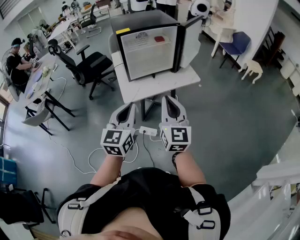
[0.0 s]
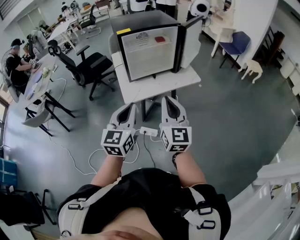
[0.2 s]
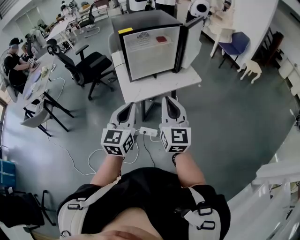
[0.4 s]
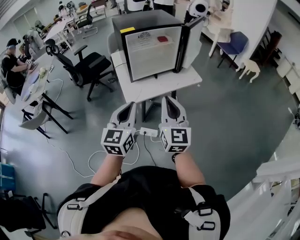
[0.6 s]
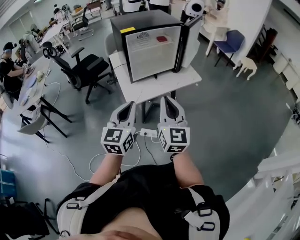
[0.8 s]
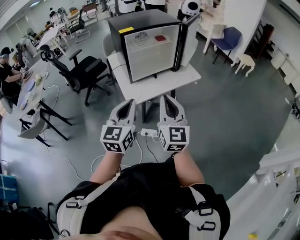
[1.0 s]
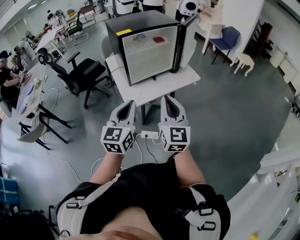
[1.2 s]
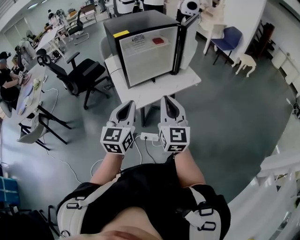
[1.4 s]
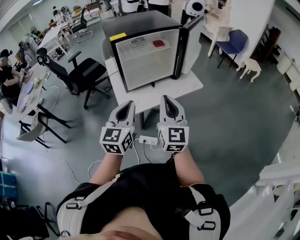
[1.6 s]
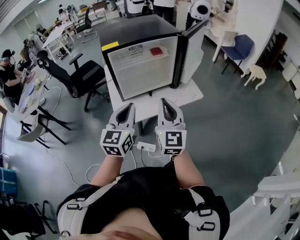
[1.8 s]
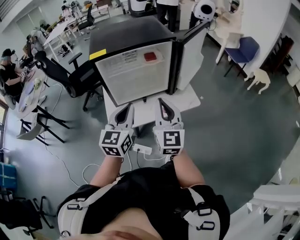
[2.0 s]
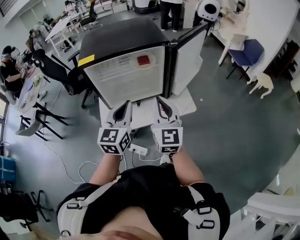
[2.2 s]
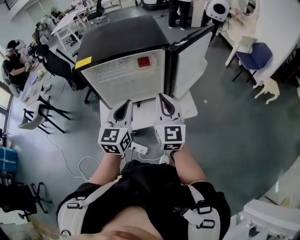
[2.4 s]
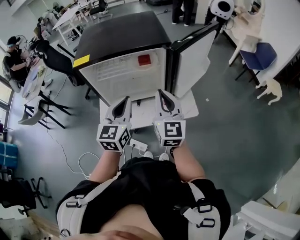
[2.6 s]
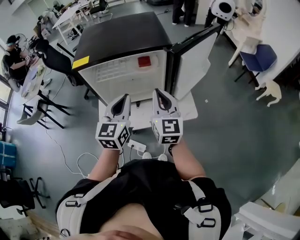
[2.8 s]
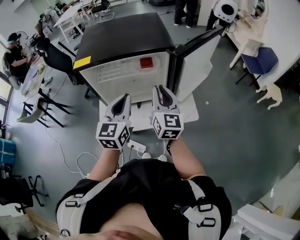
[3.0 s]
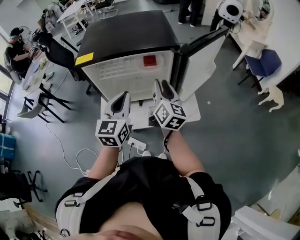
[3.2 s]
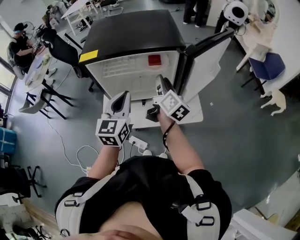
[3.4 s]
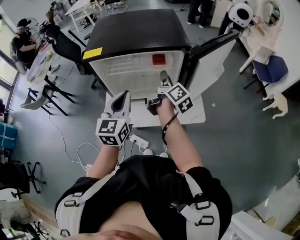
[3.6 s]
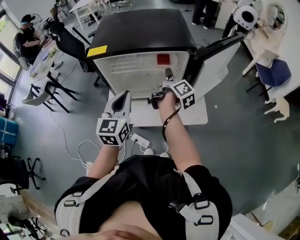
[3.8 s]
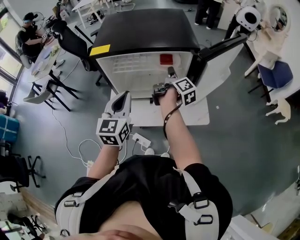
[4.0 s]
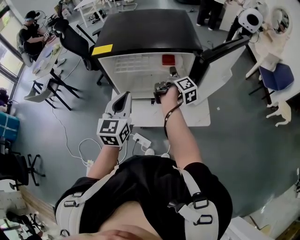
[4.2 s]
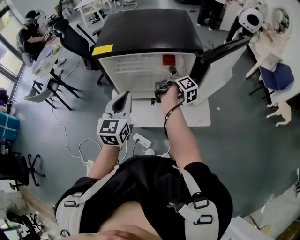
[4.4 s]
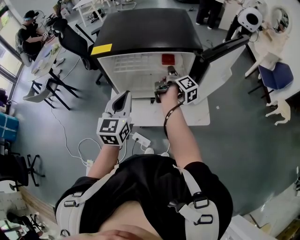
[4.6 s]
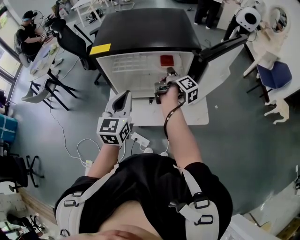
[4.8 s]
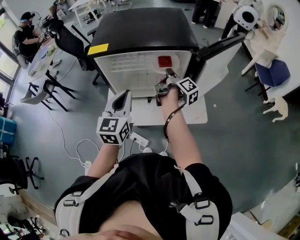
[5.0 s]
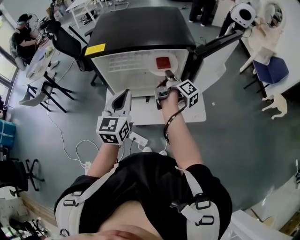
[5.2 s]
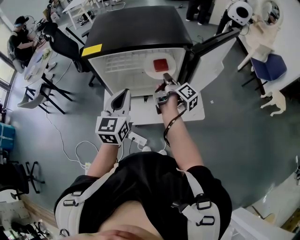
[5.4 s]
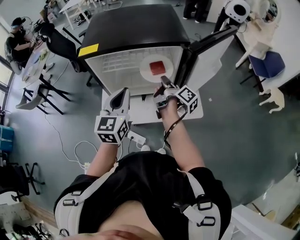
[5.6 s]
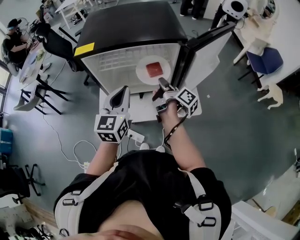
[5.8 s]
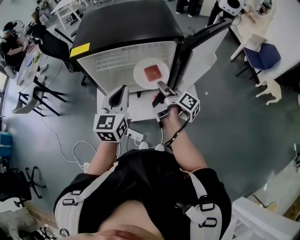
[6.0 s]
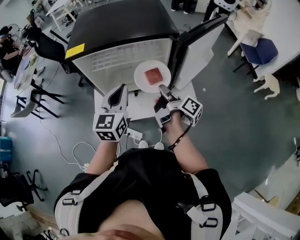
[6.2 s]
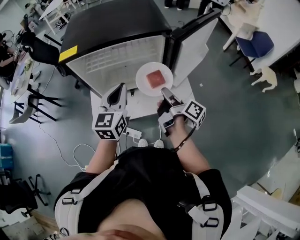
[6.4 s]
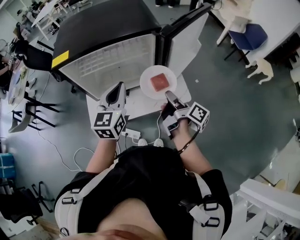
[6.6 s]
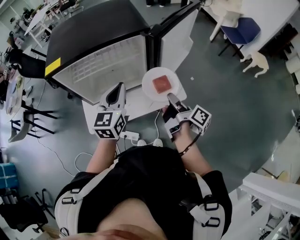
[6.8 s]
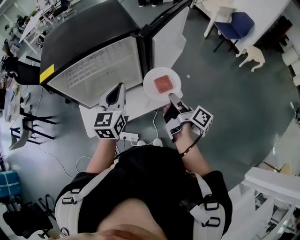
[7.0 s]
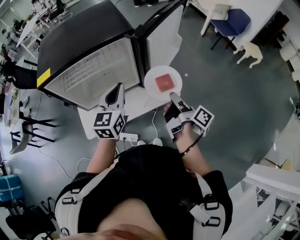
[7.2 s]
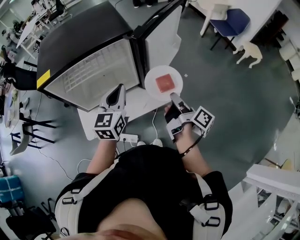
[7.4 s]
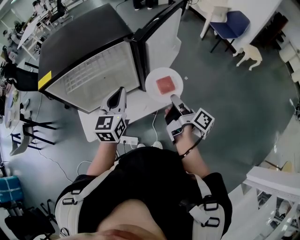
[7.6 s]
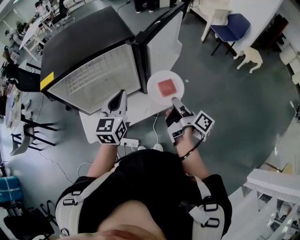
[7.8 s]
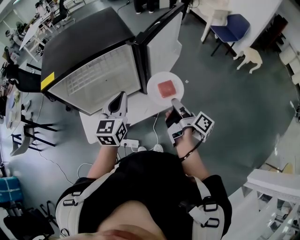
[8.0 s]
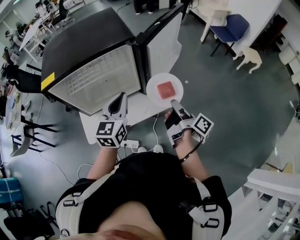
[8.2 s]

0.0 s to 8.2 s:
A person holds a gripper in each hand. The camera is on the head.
0.0 to 1.6 s: Both grippers move forward, roughly 10 cm.
1.6 to 3.2 s: Both grippers move forward and to the right, some 30 cm. The right gripper changes its angle by some 40 degrees, and opens its fingers.
3.2 to 5.0 s: The right gripper shifts approximately 10 cm forward and downward, twists approximately 60 degrees clockwise, seen from behind, and closes up.
5.0 to 6.6 s: The right gripper heads backward and to the right, covering about 20 cm. Meanwhile the left gripper goes roughly 10 cm to the right.
6.6 to 8.2 s: Both grippers move to the right, approximately 5 cm.

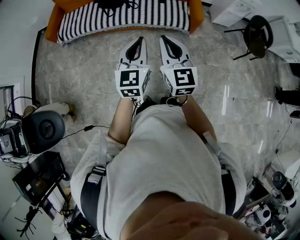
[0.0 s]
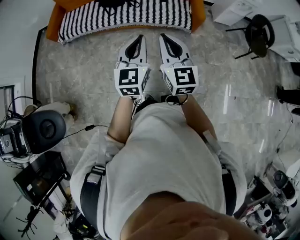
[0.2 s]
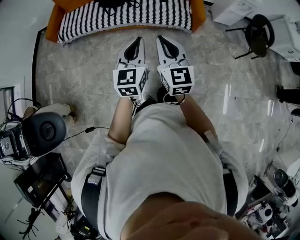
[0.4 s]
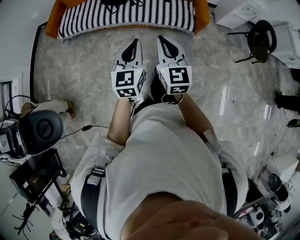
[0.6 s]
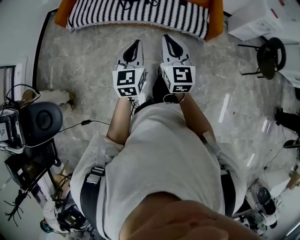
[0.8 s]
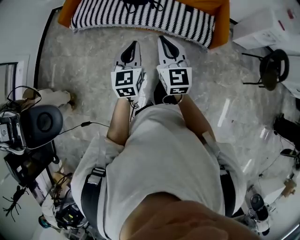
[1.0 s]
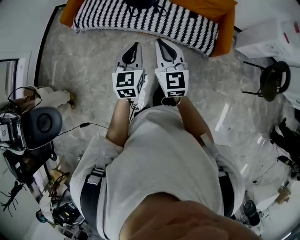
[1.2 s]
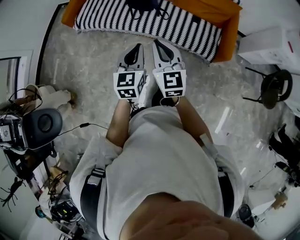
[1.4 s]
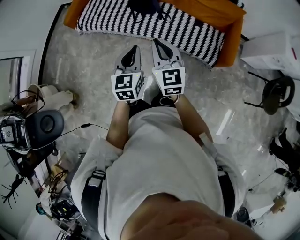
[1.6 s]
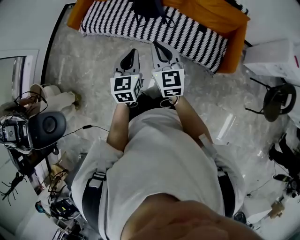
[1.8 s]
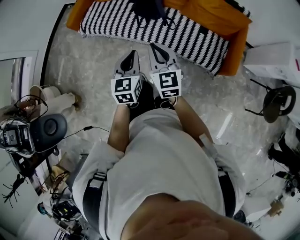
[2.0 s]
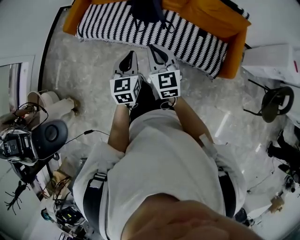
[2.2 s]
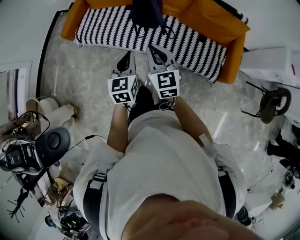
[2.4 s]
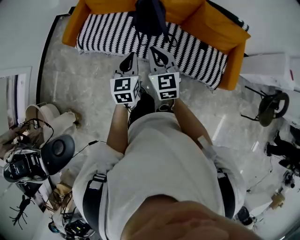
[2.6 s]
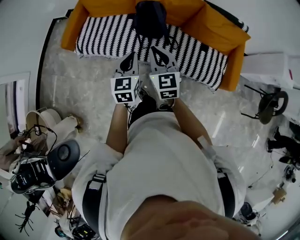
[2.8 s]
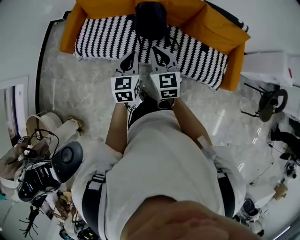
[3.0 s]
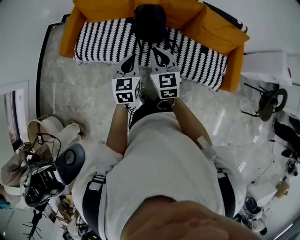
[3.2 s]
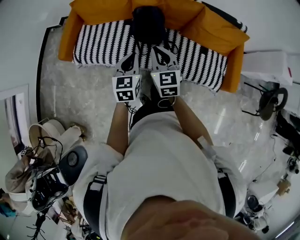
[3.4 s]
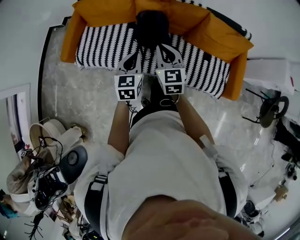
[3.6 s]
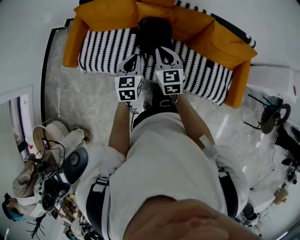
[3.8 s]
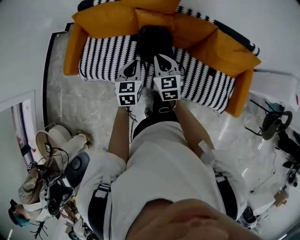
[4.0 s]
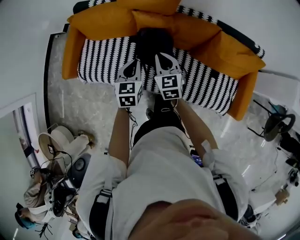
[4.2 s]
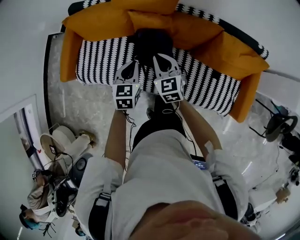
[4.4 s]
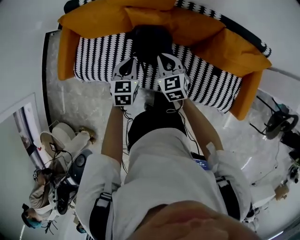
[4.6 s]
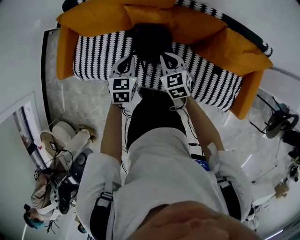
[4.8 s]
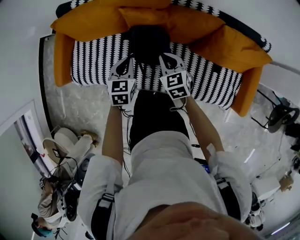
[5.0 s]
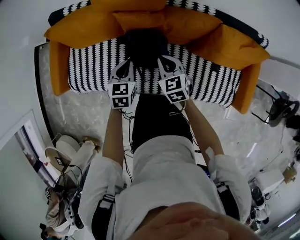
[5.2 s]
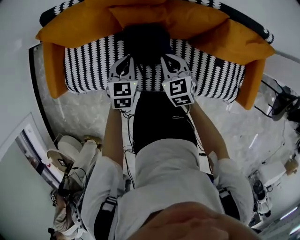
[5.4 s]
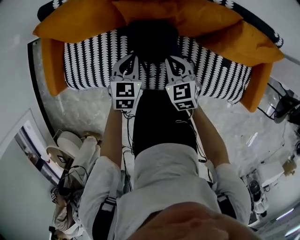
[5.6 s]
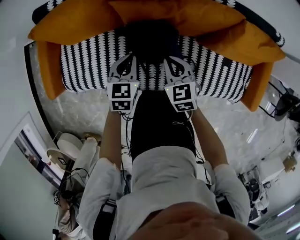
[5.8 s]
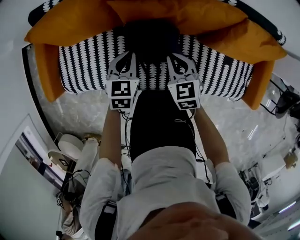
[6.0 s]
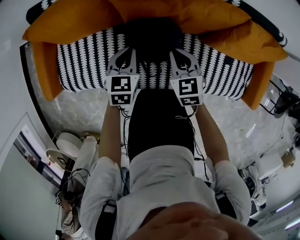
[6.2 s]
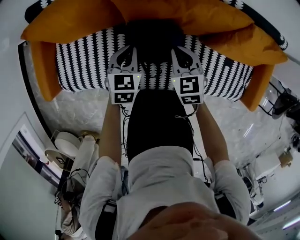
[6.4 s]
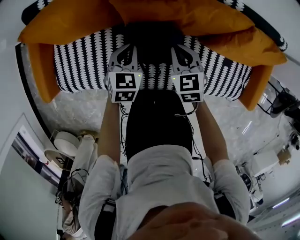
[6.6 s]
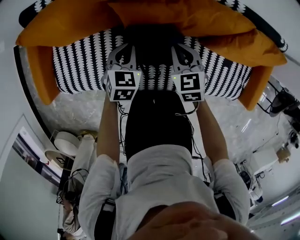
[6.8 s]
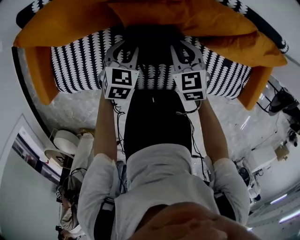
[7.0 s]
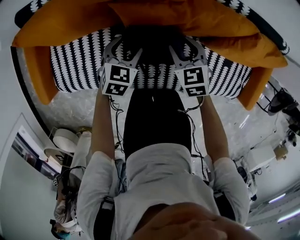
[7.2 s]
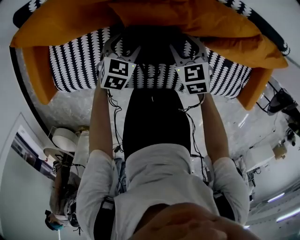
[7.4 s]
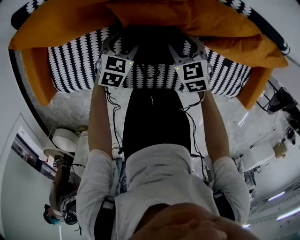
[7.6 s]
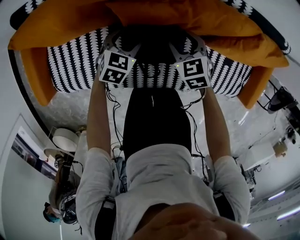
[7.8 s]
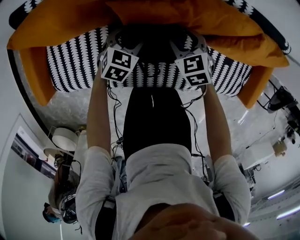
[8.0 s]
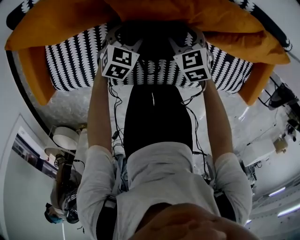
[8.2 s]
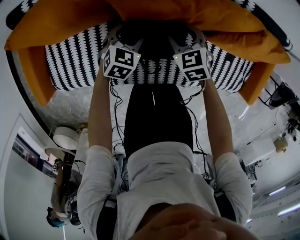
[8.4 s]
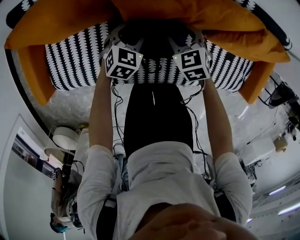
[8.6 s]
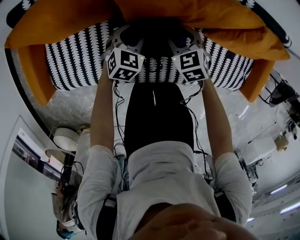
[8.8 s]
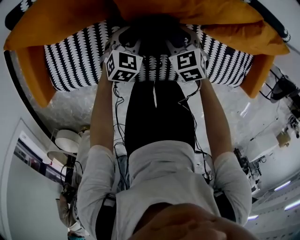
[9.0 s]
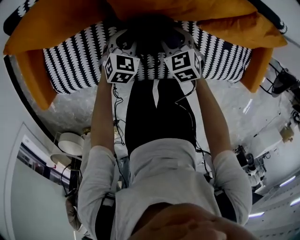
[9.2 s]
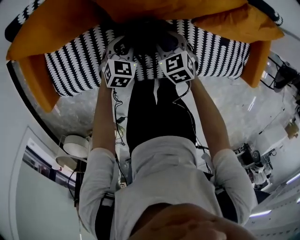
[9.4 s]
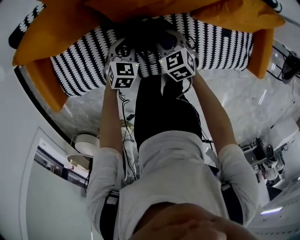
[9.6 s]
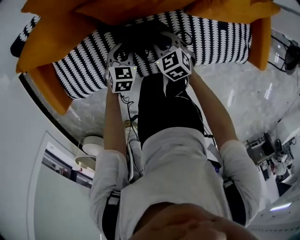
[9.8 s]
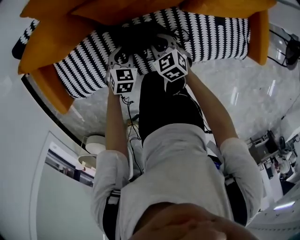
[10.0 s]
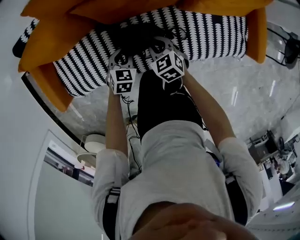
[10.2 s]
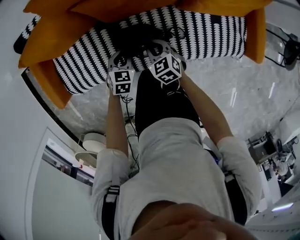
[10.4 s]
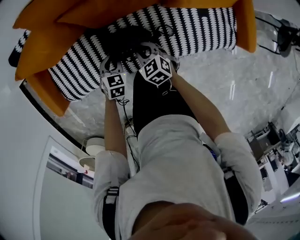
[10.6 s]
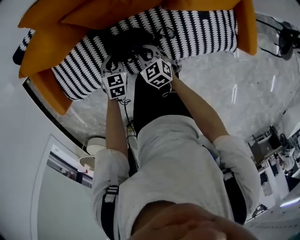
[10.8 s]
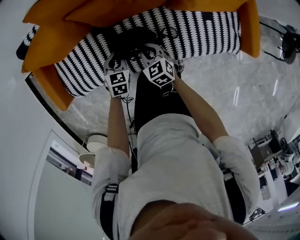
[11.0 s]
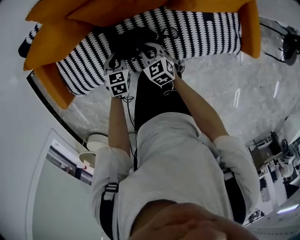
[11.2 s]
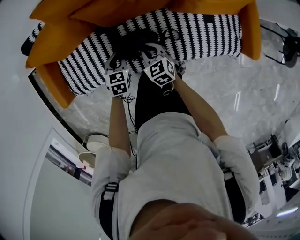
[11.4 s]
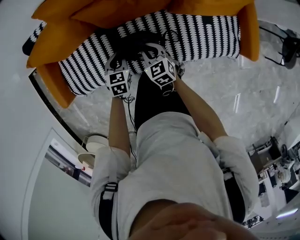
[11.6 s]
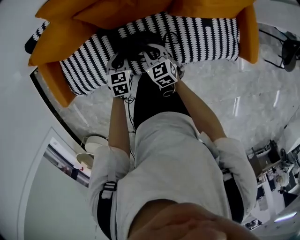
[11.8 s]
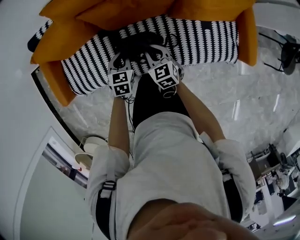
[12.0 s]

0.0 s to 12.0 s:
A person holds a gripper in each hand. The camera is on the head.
0.0 to 1.6 s: The grippers both shift forward by about 30 cm. The left gripper changes its angle by about 20 degrees.
1.6 to 3.0 s: The grippers both shift forward and to the left by some 30 cm.
3.0 to 4.4 s: Both grippers move forward and downward, approximately 35 cm.
4.4 to 6.0 s: The right gripper moves downward, roughly 15 cm. Meanwhile the left gripper moves downward and forward, some 20 cm.
6.0 to 7.6 s: The left gripper goes some 15 cm downward and forward, and opens its fingers; the right gripper is displaced forward and downward by approximately 10 cm, and opens its fingers.
7.6 to 9.0 s: The left gripper closes up.
9.0 to 10.4 s: The grippers both shift backward by roughly 15 cm. The right gripper closes.
10.4 to 12.0 s: The left gripper heads upward, covering some 10 cm; the right gripper is displaced upward and to the right by approximately 10 cm.

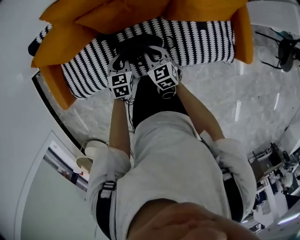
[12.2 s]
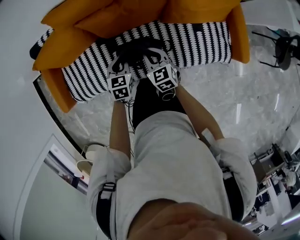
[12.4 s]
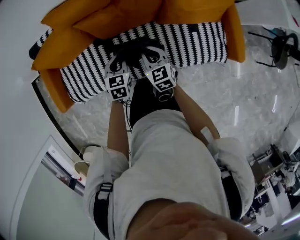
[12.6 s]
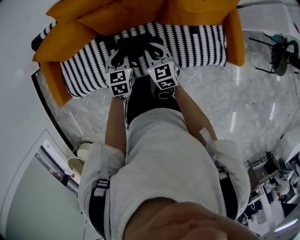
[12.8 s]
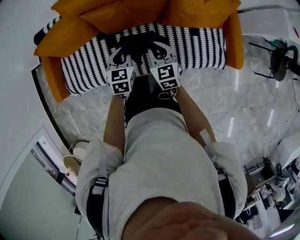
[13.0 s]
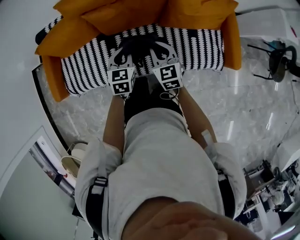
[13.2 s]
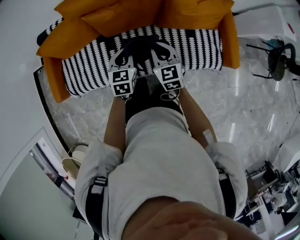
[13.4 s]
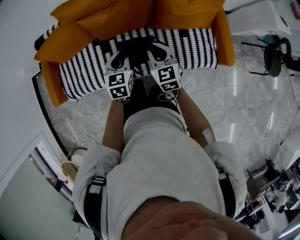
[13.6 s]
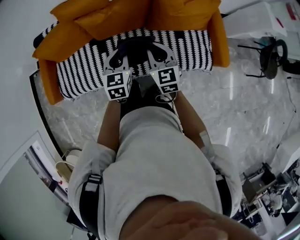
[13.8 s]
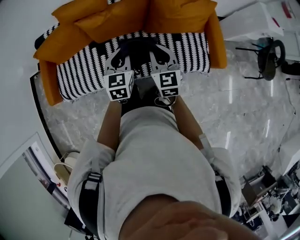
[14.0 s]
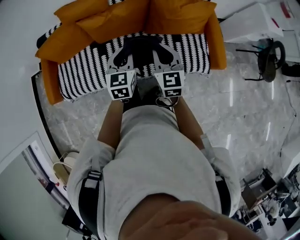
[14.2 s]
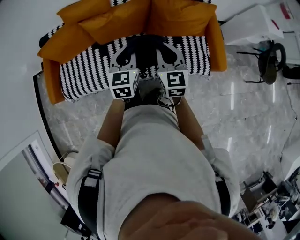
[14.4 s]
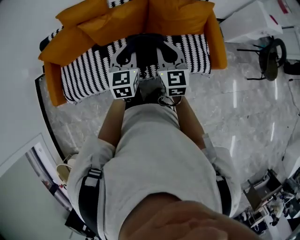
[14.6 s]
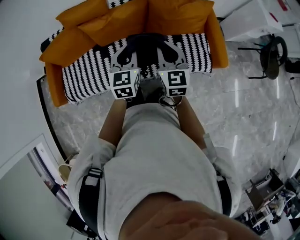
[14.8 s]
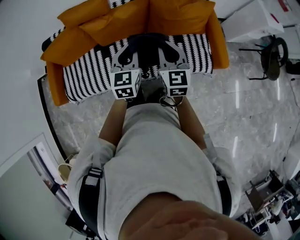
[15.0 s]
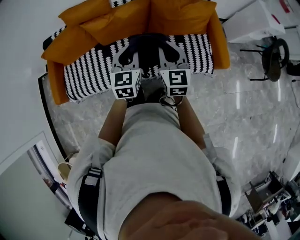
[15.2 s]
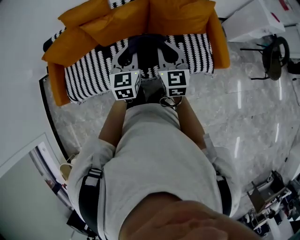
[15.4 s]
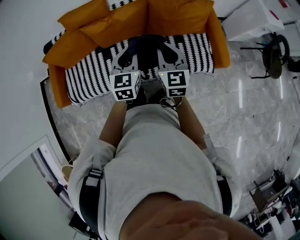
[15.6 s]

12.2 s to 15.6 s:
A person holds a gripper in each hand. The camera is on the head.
12.2 to 13.8 s: The grippers both shift upward, to the right and backward by some 25 cm.
13.8 to 15.6 s: Both grippers move to the right and upward, roughly 10 cm.
